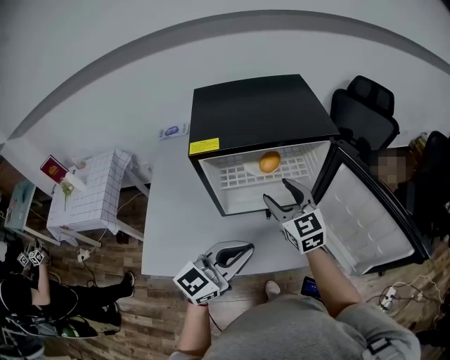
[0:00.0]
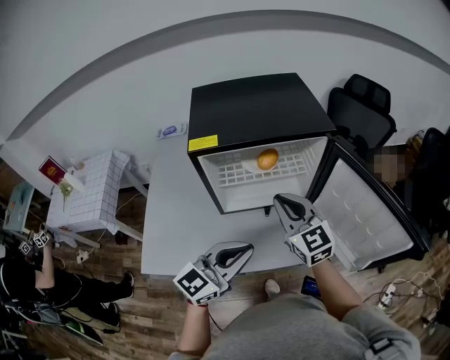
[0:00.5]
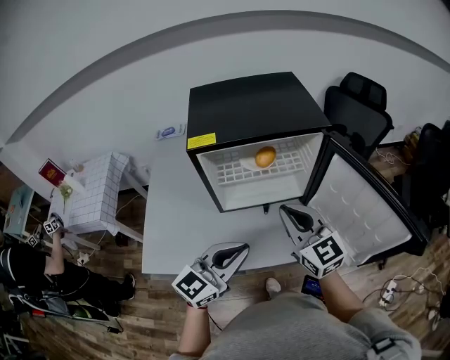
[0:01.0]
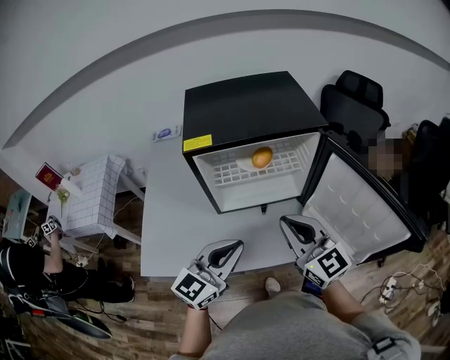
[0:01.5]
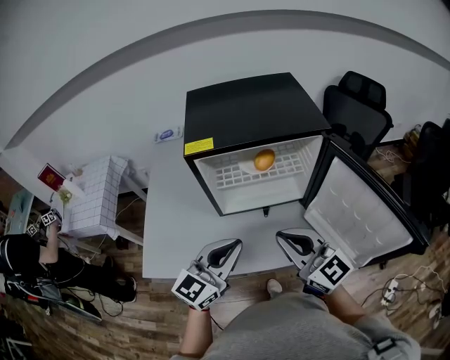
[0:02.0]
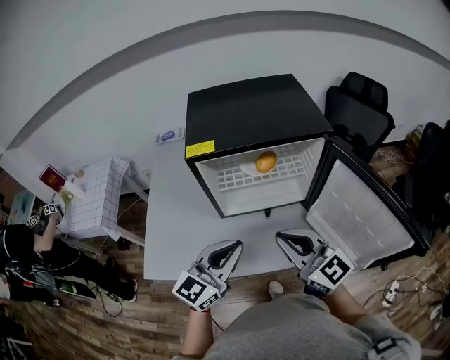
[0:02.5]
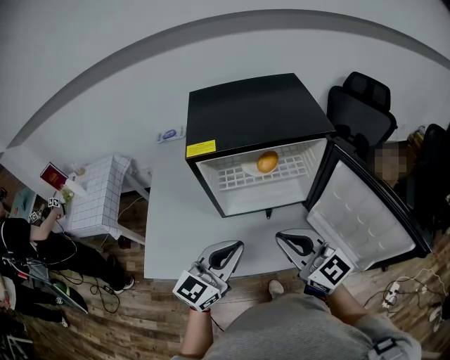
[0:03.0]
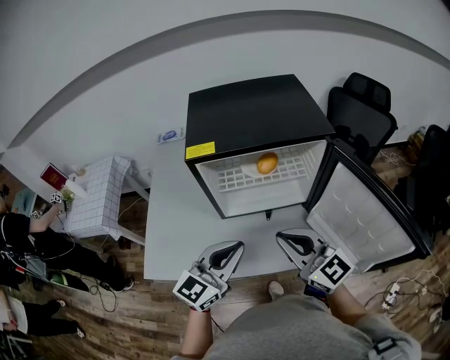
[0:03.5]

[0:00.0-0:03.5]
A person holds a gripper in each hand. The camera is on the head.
0:00.0 to 0:02.0: The right gripper moves backward, some 15 cm, rotates some 20 degrees, and closes.
0:02.0 to 0:03.5: The grippers make only small movements.

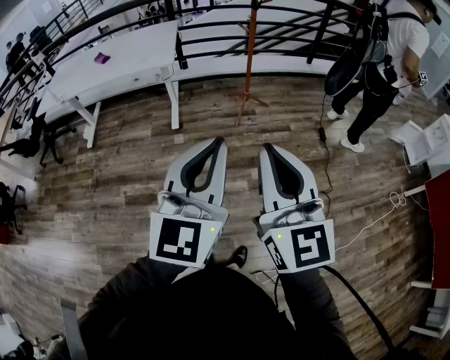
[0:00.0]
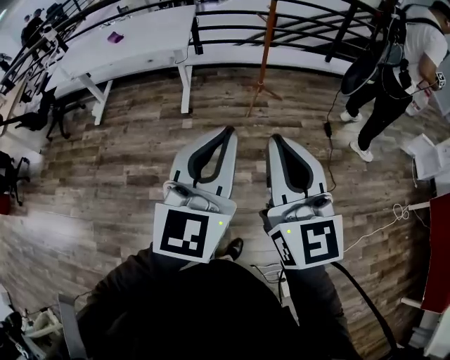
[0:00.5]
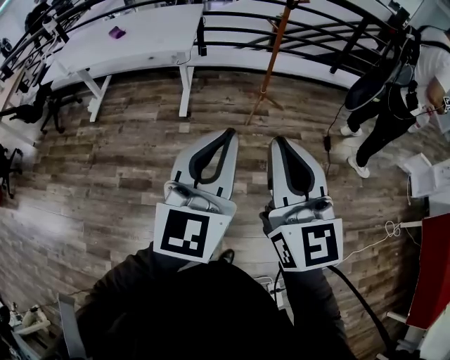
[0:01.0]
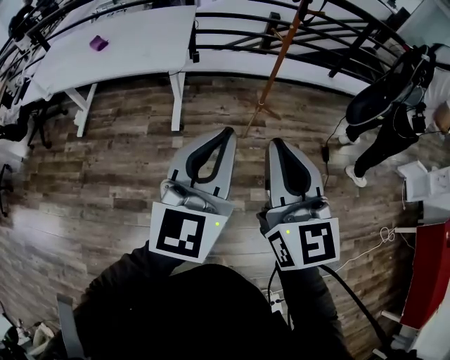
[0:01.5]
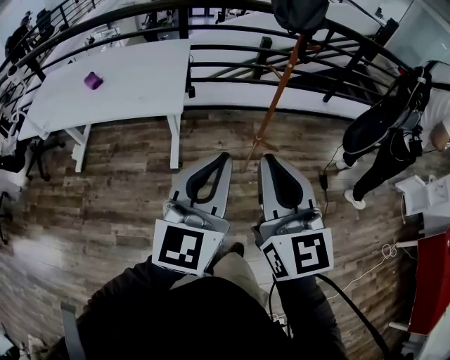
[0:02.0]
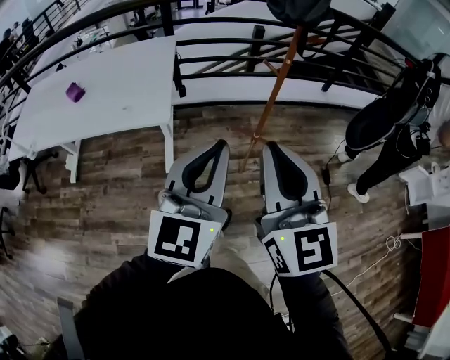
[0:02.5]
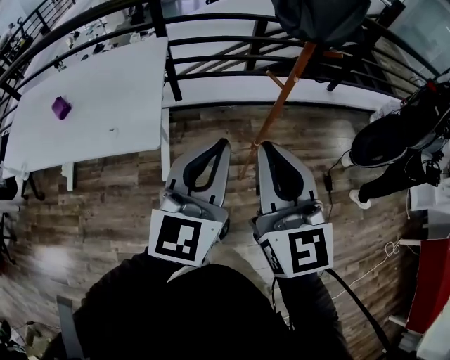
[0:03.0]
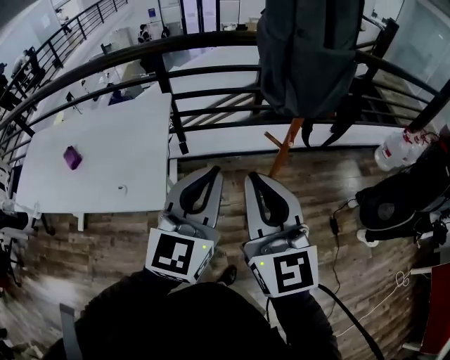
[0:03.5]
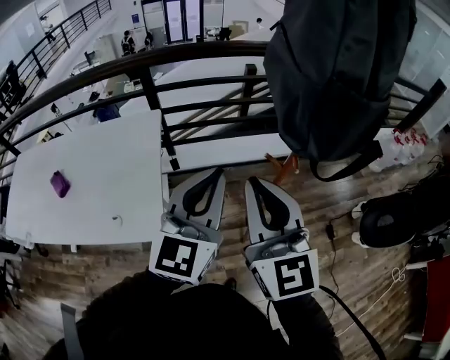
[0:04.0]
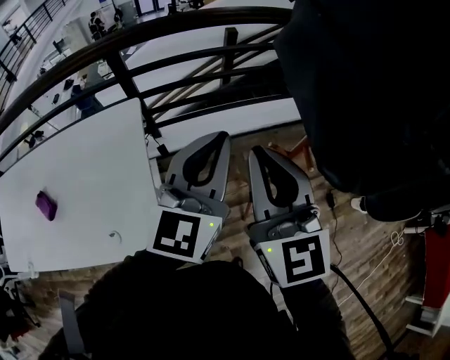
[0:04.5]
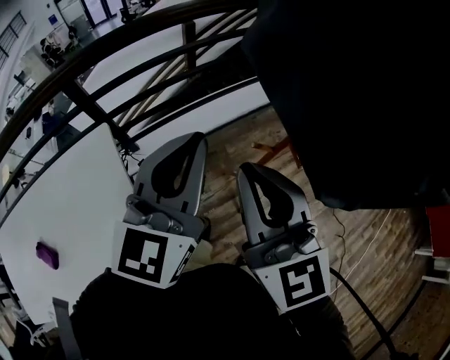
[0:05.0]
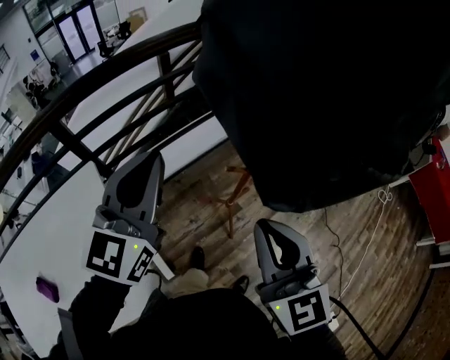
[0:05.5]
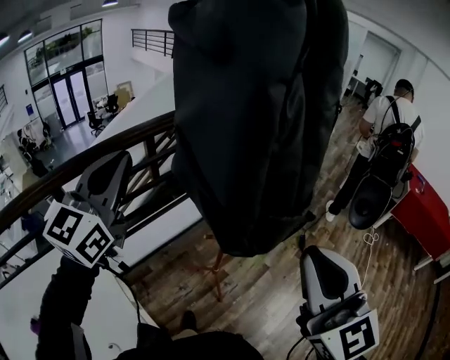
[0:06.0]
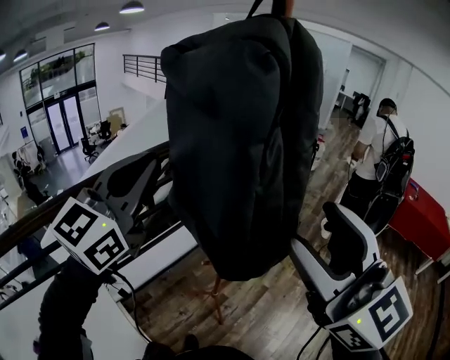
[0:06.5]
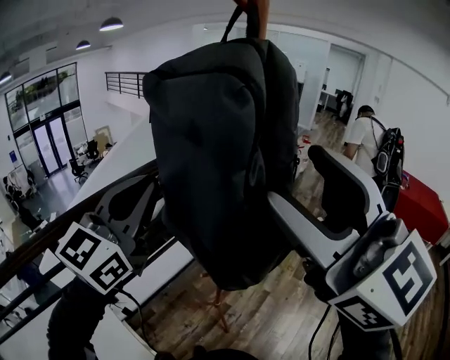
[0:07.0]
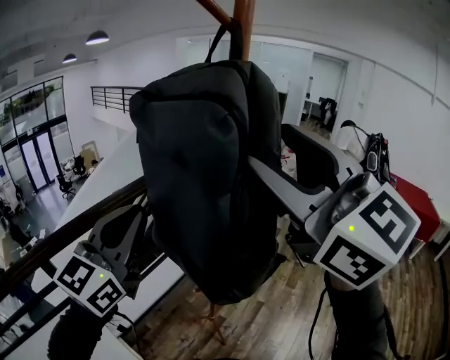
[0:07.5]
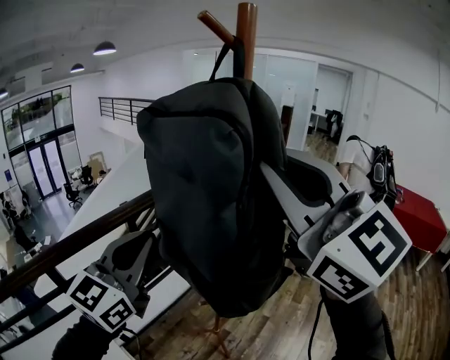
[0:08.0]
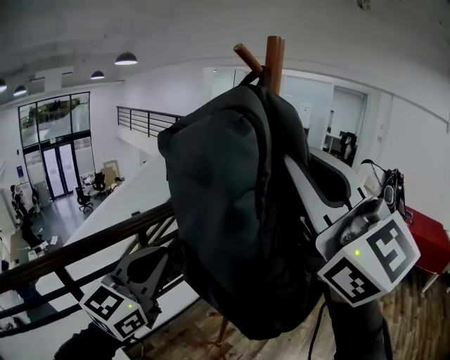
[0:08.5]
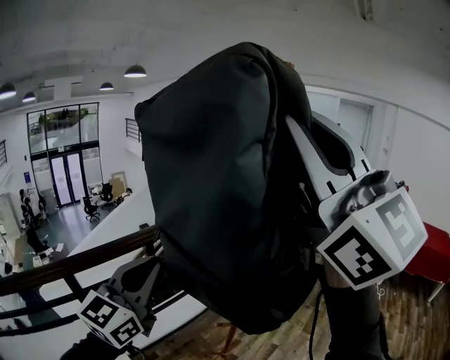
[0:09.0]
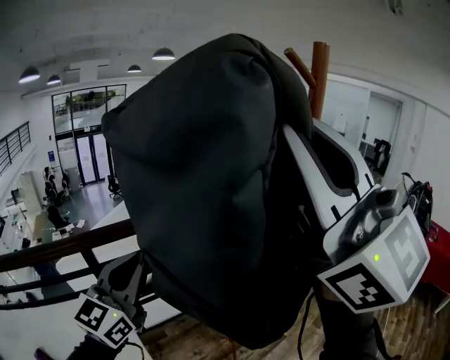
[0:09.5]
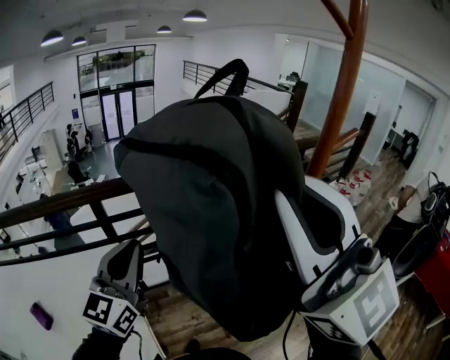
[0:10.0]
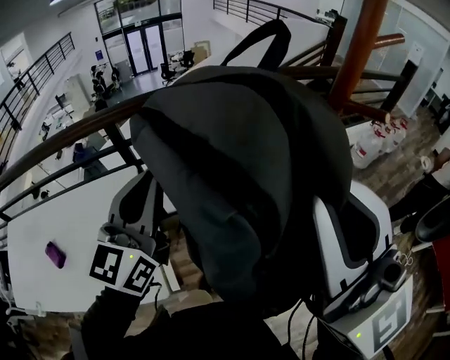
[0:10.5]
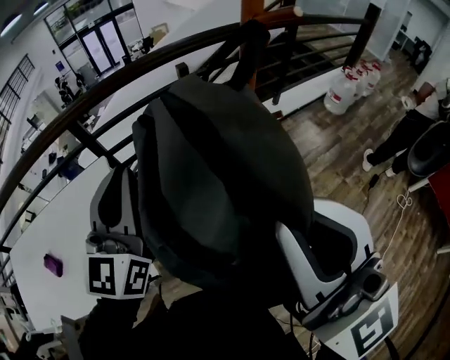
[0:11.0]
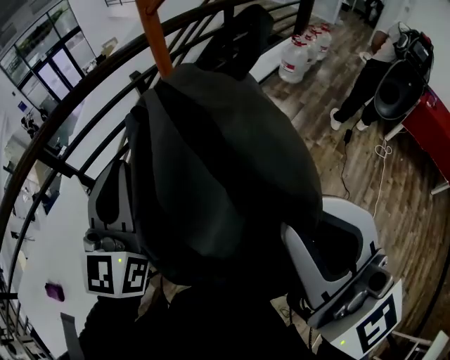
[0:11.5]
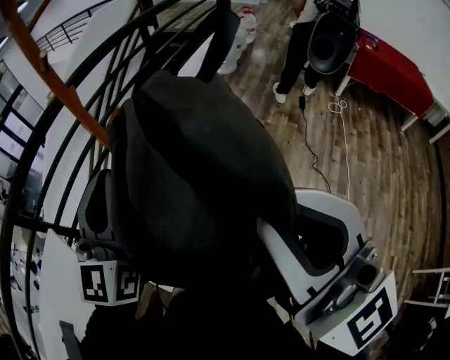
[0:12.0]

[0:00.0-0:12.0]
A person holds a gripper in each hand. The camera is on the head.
0:00.0 to 0:02.0: The two grippers go about 40 cm forward.
0:02.0 to 0:04.0: Both grippers are carried forward, about 40 cm.
0:04.0 to 0:06.0: The left gripper ends up approximately 30 cm from where it was, and rotates about 30 degrees, while the right gripper moves roughly 20 cm, and swivels roughly 40 degrees.
0:06.0 to 0:08.0: The right gripper heads upward, covering some 25 cm, and opens and closes again. Meanwhile the left gripper shifts some 10 cm to the right and upward.
0:08.0 to 0:10.0: The right gripper moves roughly 15 cm upward and comes back, and swivels some 30 degrees, while the left gripper ends up approximately 20 cm from where it was, and swivels roughly 40 degrees.
0:10.0 to 0:12.0: The right gripper moves approximately 40 cm, and swivels about 40 degrees; the left gripper moves approximately 35 cm, and rotates about 30 degrees.

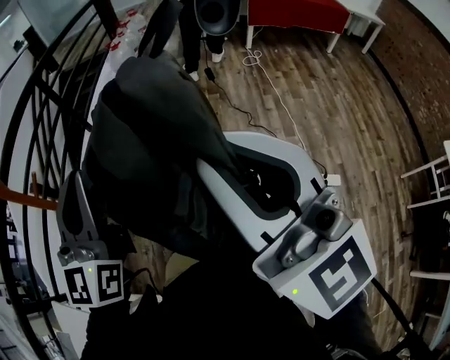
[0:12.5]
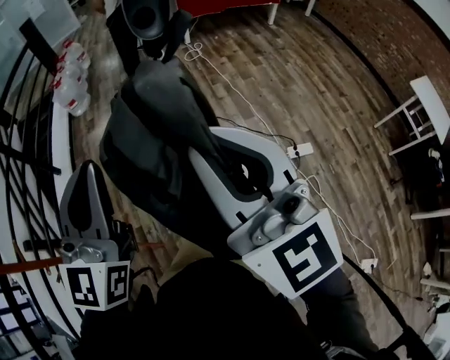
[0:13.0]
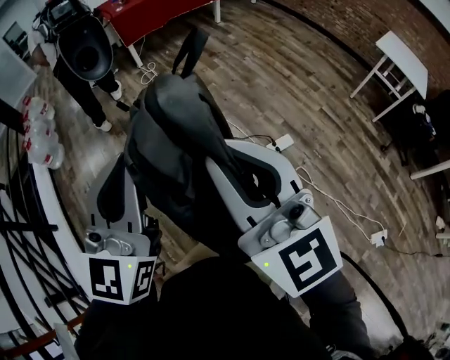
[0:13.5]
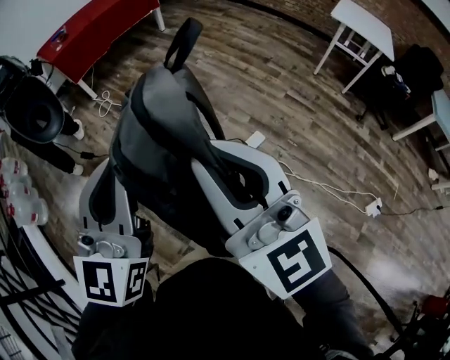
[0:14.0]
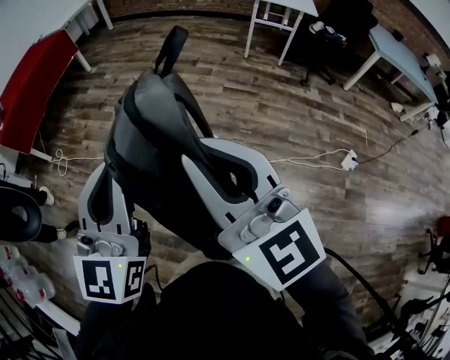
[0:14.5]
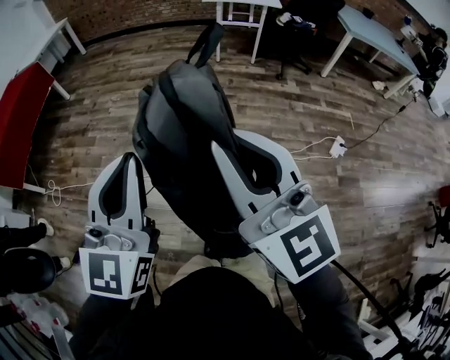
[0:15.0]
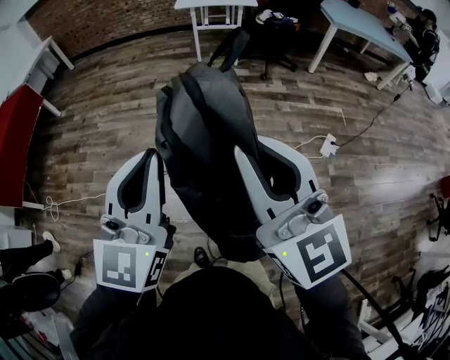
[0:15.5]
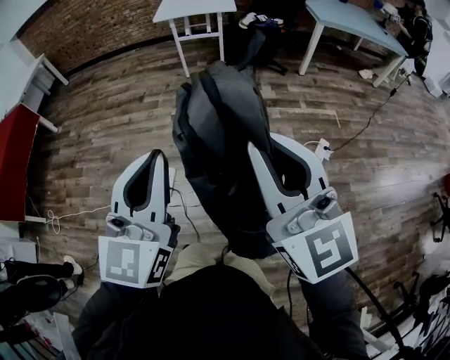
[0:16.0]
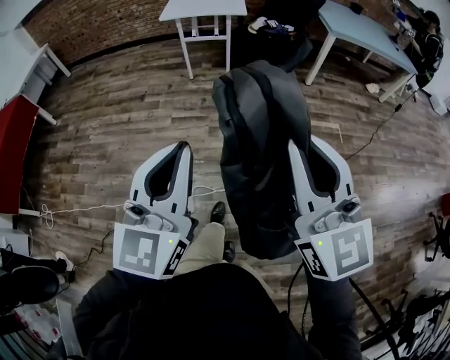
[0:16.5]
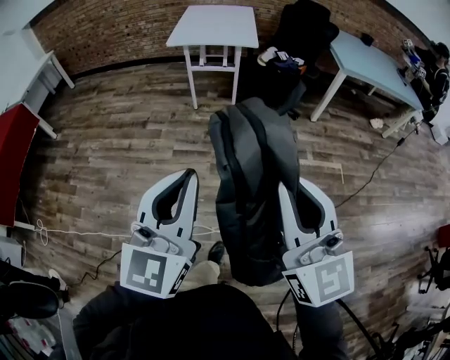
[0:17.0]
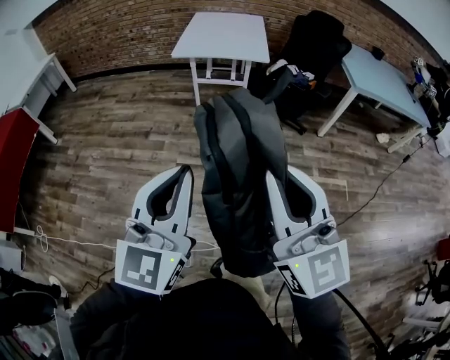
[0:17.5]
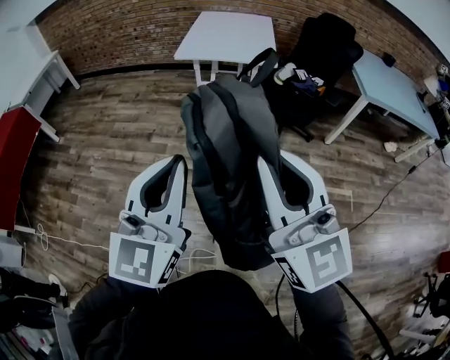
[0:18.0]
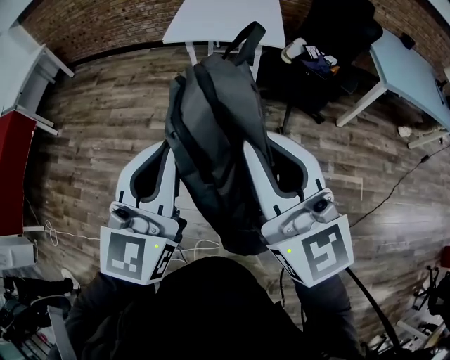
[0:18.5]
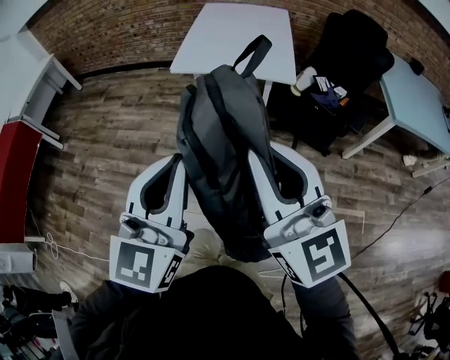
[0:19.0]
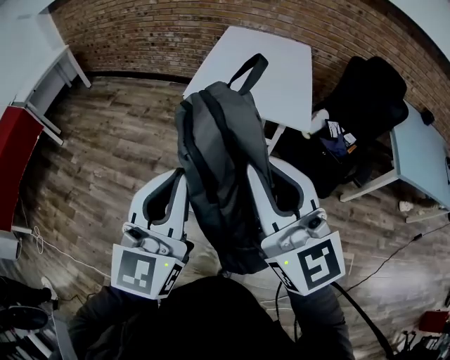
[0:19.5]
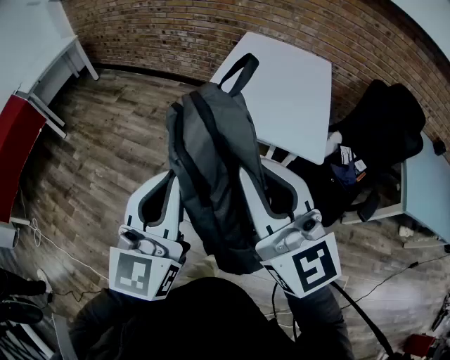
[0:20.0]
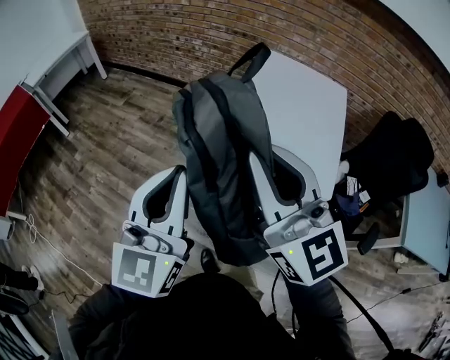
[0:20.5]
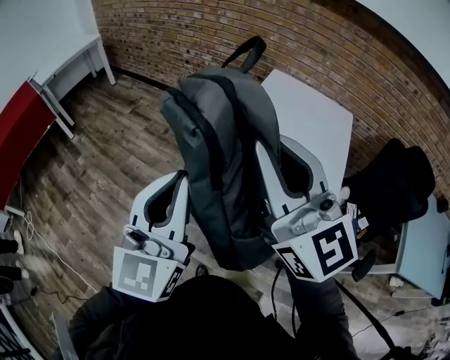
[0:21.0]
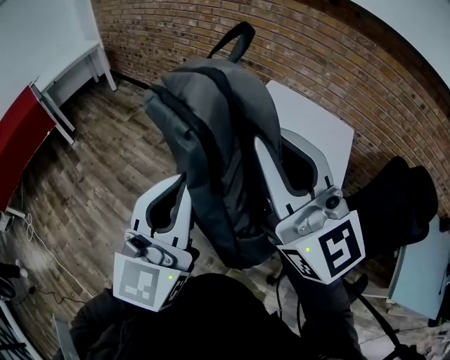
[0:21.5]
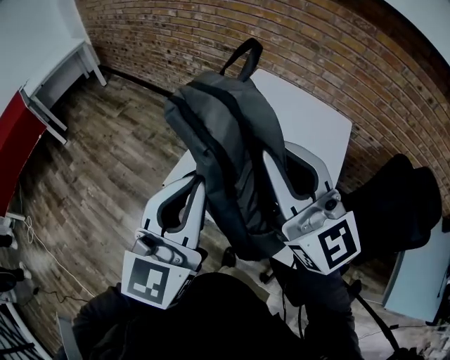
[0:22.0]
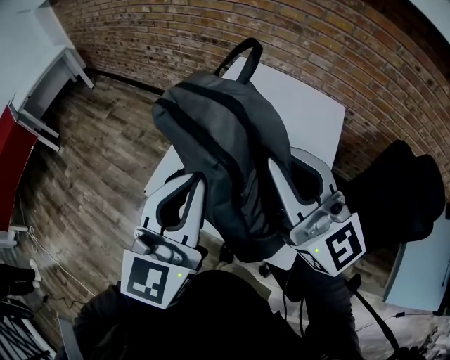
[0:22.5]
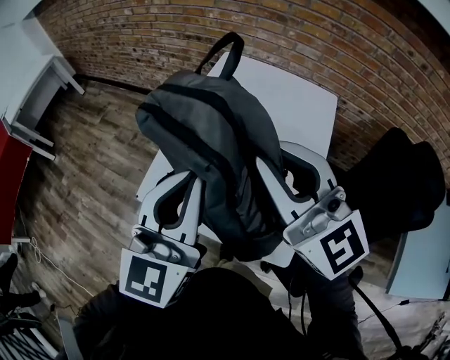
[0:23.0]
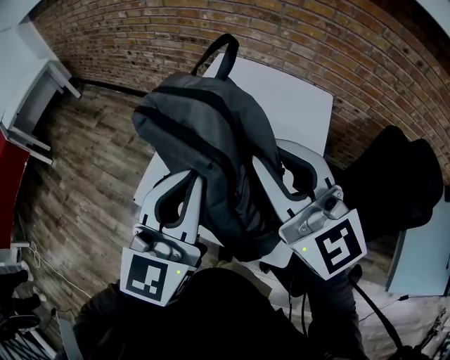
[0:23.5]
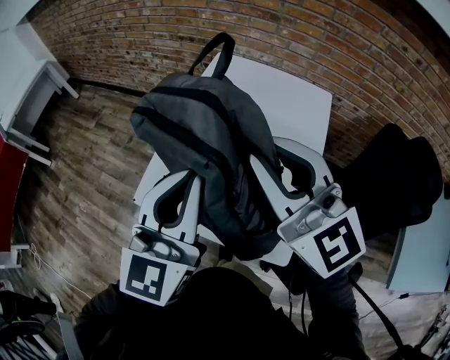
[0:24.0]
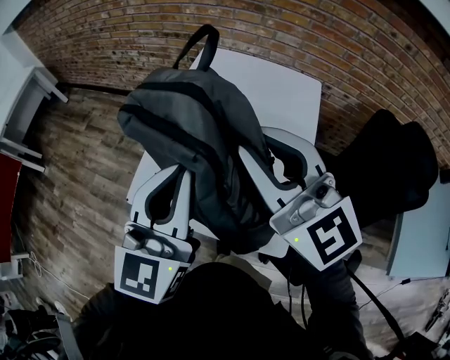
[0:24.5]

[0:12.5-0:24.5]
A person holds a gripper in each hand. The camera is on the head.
0:12.5 to 0:14.5: The two grippers travel together, some 60 cm. The right gripper changes its angle by some 80 degrees. Meanwhile the left gripper turns by approximately 80 degrees.
0:14.5 to 0:16.5: Both grippers are carried about 50 cm. The left gripper changes its angle by roughly 30 degrees, while the right gripper changes its angle by roughly 30 degrees.
0:16.5 to 0:18.5: The two grippers travel together, forward, some 50 cm.
0:18.5 to 0:20.5: Both grippers are carried forward, approximately 50 cm.
0:20.5 to 0:22.5: Both grippers move to the right and forward, approximately 40 cm.
0:22.5 to 0:24.5: The grippers move only a little.
